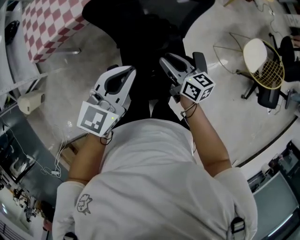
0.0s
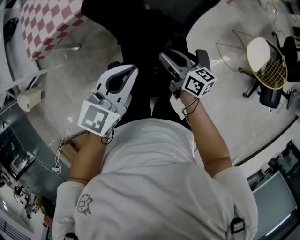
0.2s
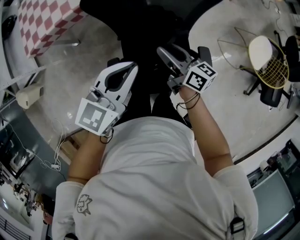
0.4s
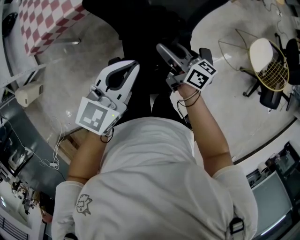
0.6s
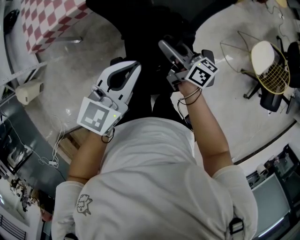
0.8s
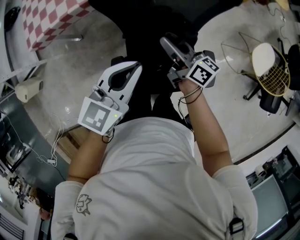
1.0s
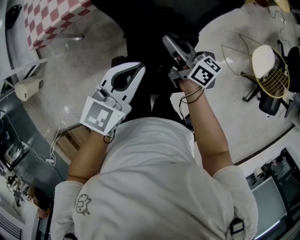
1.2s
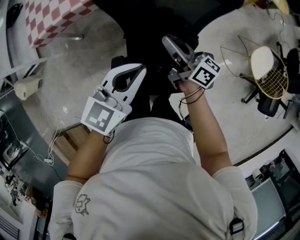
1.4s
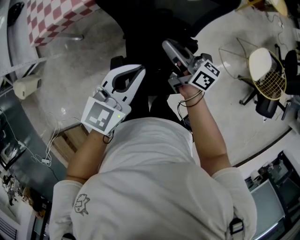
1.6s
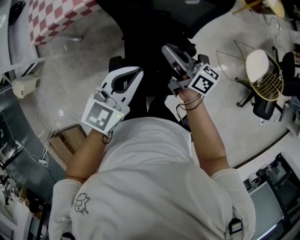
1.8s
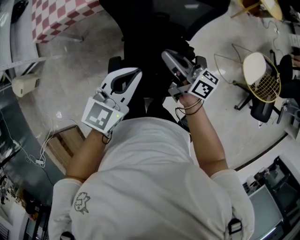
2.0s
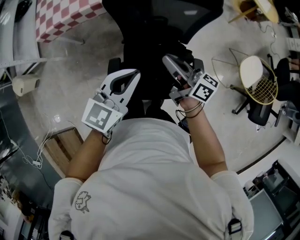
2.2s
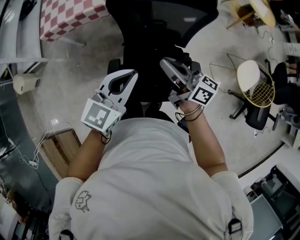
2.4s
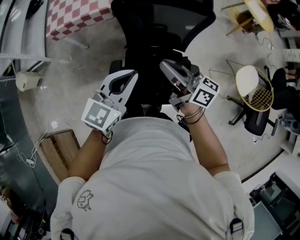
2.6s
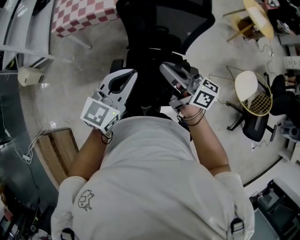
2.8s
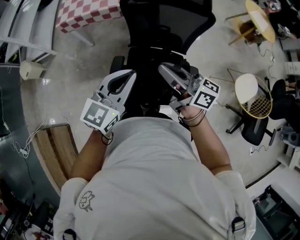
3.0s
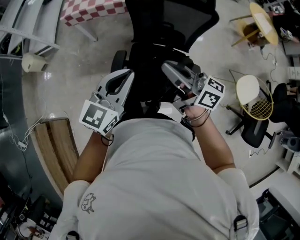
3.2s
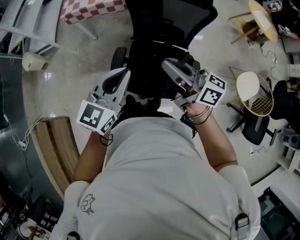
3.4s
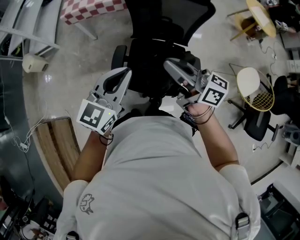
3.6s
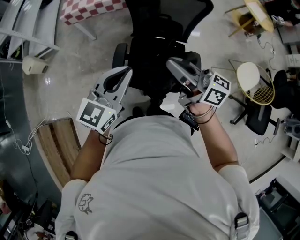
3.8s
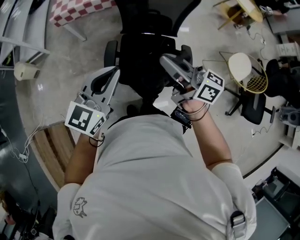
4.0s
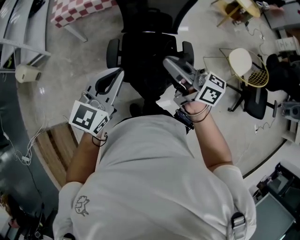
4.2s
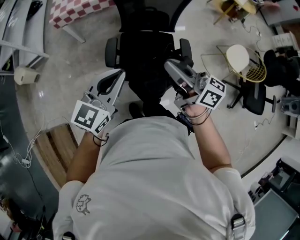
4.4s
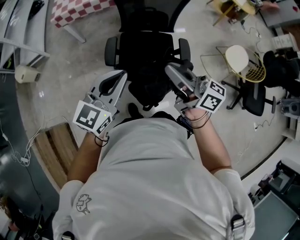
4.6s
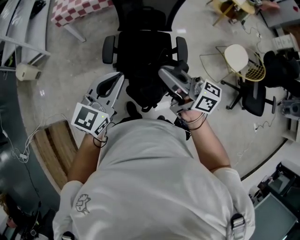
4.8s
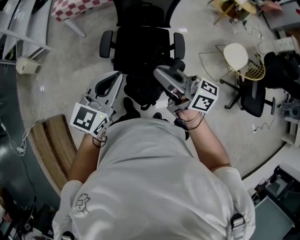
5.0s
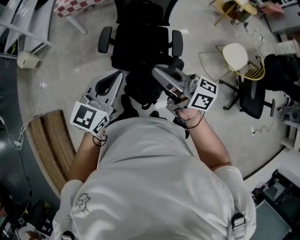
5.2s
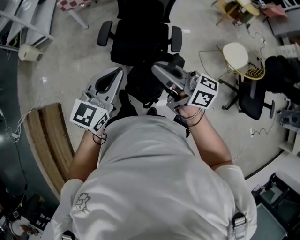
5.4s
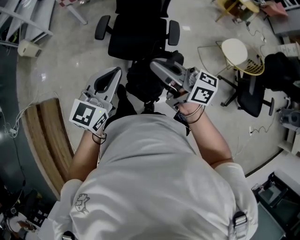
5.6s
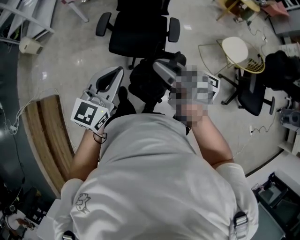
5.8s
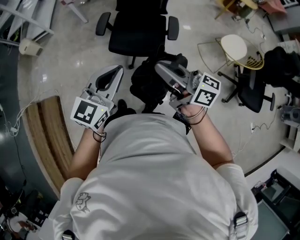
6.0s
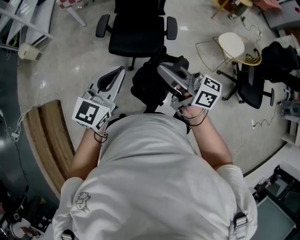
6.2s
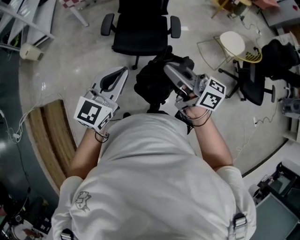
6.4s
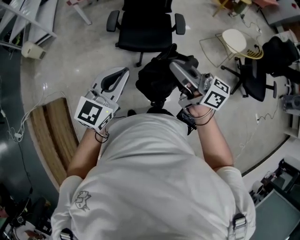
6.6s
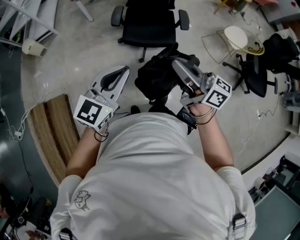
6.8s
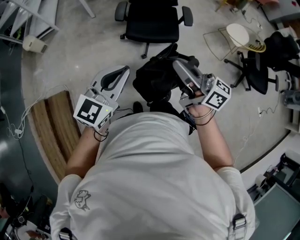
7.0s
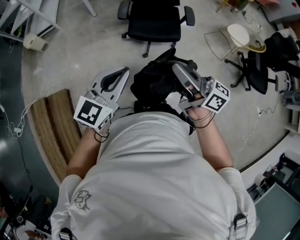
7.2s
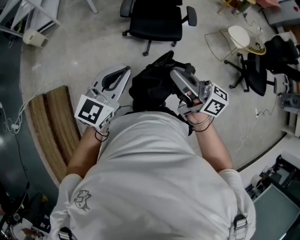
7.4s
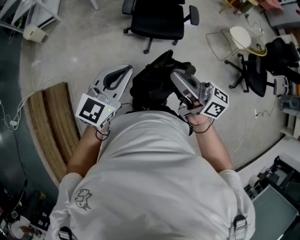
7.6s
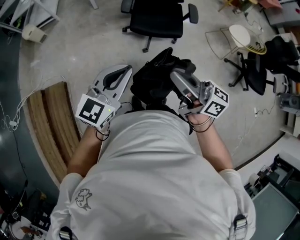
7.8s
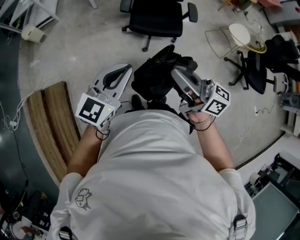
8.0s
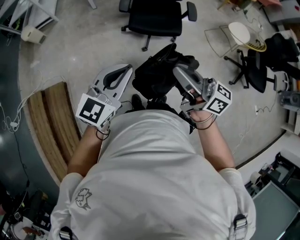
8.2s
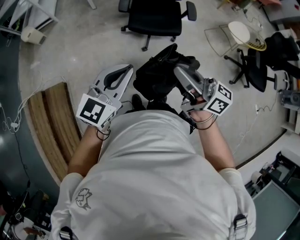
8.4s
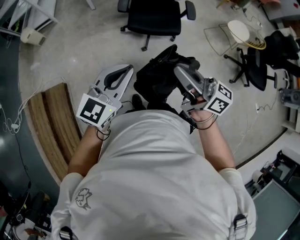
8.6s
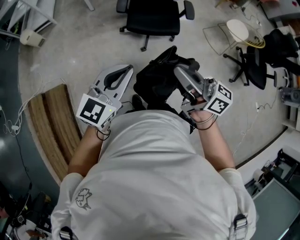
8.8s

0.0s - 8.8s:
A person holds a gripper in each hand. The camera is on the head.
0.0s - 1.4s: The right gripper shifts approximately 10 cm forward and to the left, and swivels about 20 degrees.
1.4s - 3.0s: Both grippers move backward and upward, roughly 20 cm. The left gripper rotates some 20 degrees; the right gripper swivels about 20 degrees.
3.0s - 4.4s: The left gripper is displaced backward and to the left by some 20 cm. Meanwhile the right gripper heads backward, covering some 20 cm.
4.4s - 5.8s: The left gripper heads backward and to the right, covering about 25 cm, while the right gripper travels backward by some 25 cm.
5.8s - 7.4s: Both grippers travel together to the left and backward, roughly 30 cm.
7.4s - 8.8s: The grippers stay close to where they were, moving slightly.

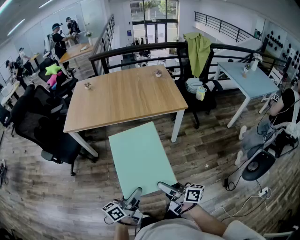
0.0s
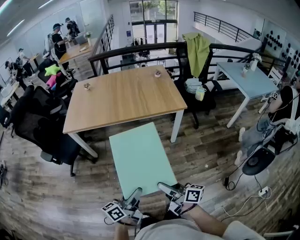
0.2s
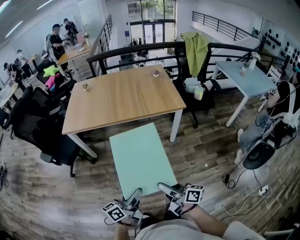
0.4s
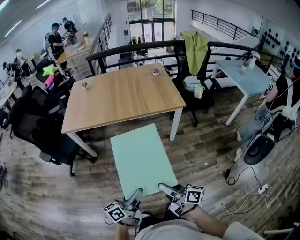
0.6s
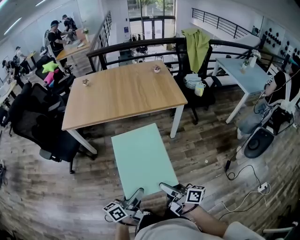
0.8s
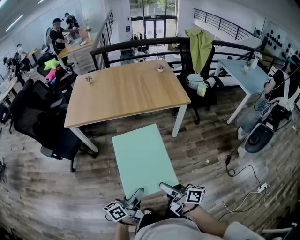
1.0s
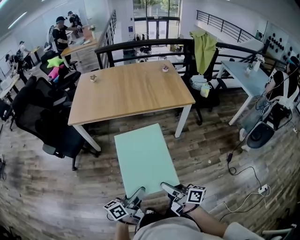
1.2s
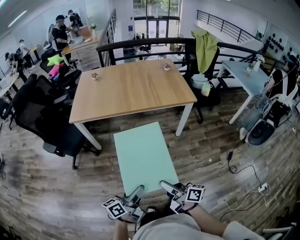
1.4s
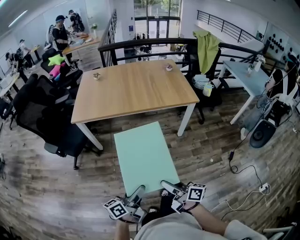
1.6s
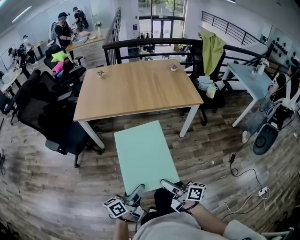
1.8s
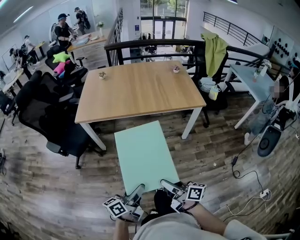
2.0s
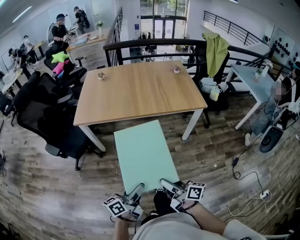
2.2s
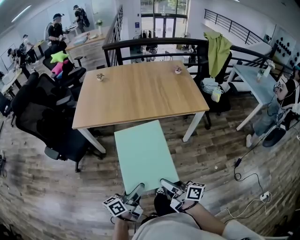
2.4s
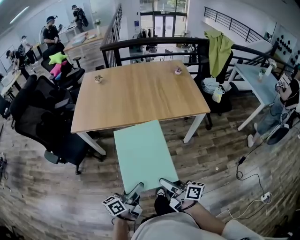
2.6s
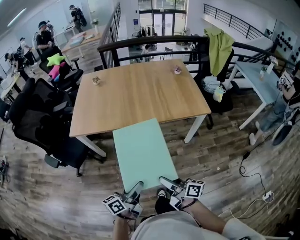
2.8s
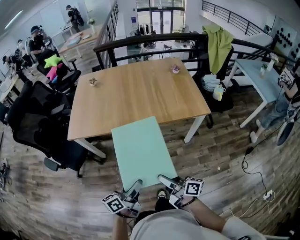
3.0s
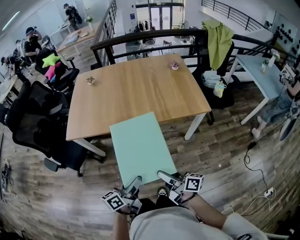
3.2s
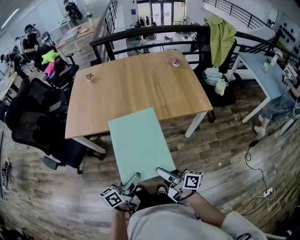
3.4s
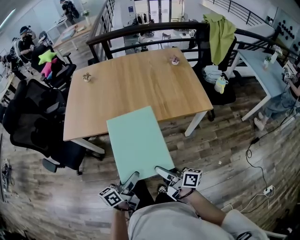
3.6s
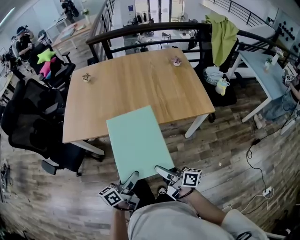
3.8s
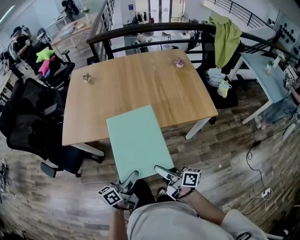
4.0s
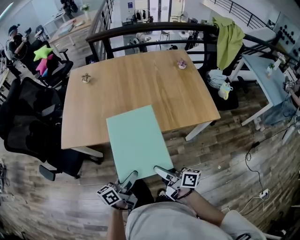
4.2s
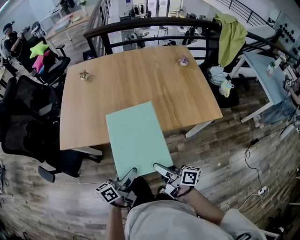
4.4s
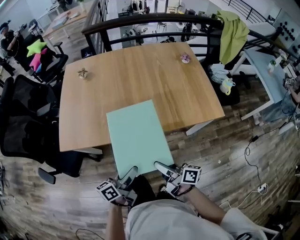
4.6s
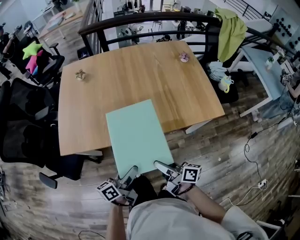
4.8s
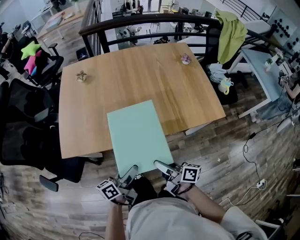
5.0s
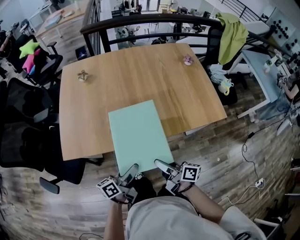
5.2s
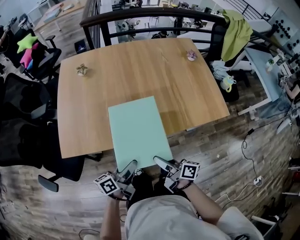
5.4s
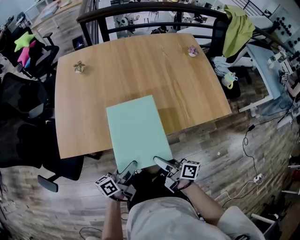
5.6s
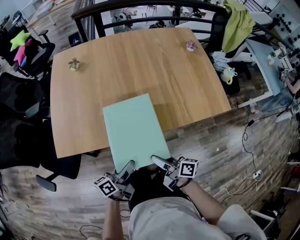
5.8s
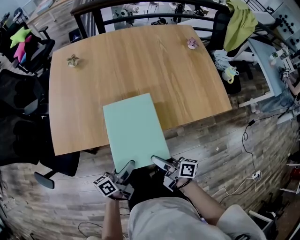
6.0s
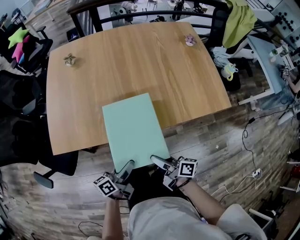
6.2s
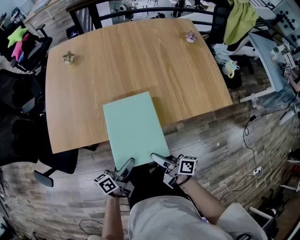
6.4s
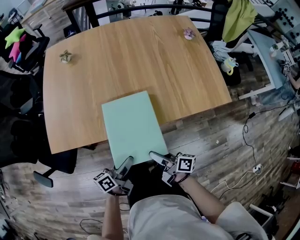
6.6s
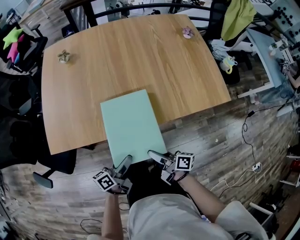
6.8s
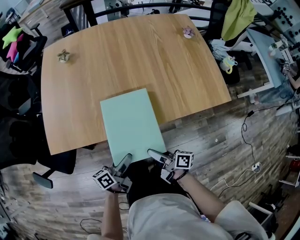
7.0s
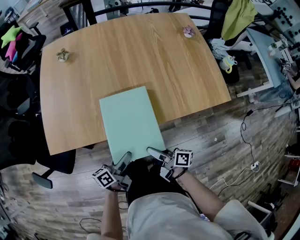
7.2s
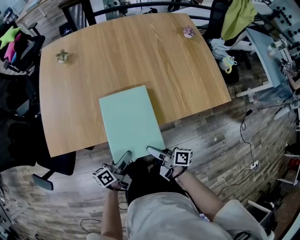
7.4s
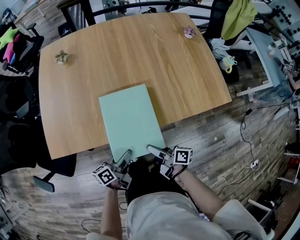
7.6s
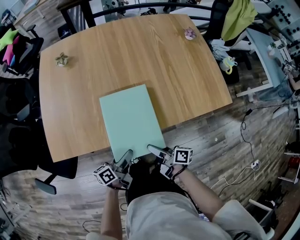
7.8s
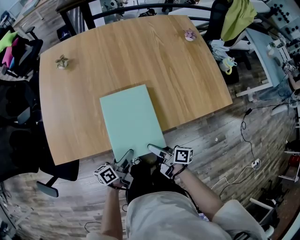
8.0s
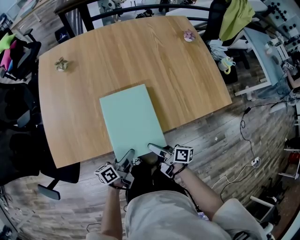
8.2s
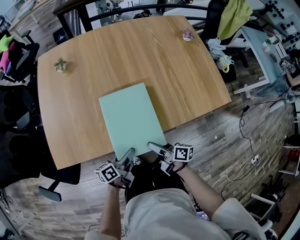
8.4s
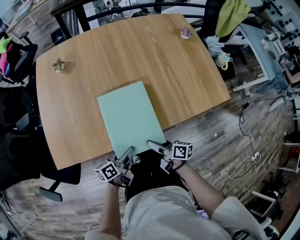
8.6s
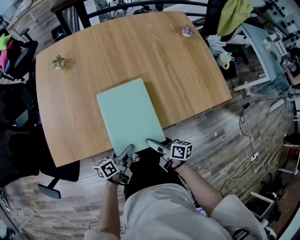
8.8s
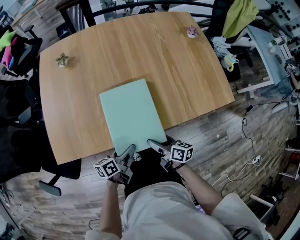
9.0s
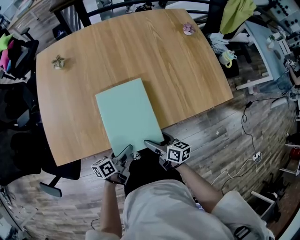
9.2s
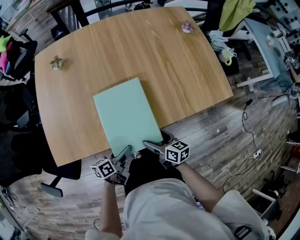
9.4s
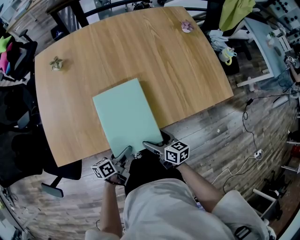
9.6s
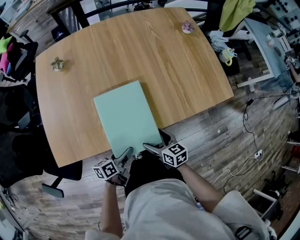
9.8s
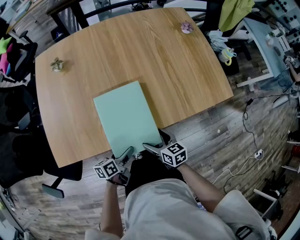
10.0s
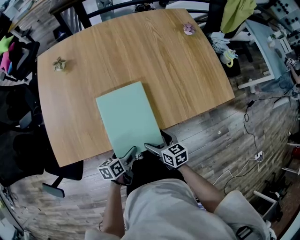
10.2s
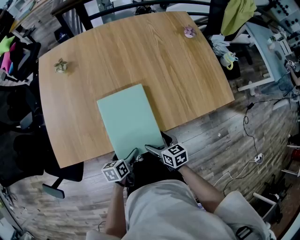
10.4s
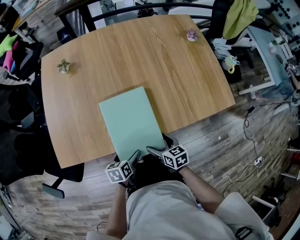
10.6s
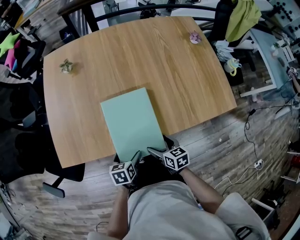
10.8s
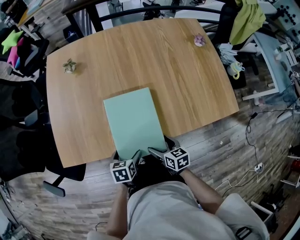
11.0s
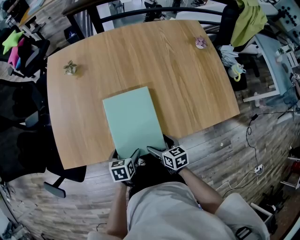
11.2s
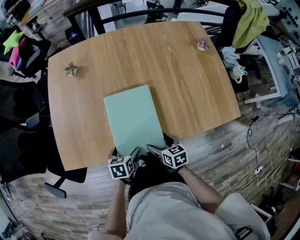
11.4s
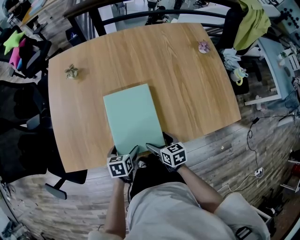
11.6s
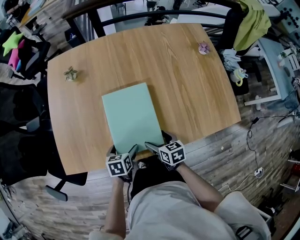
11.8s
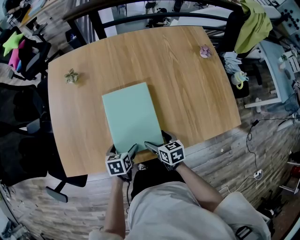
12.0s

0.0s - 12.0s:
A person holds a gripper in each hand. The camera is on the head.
0.0s - 1.6s: Both grippers move to the left, about 10 cm.
1.6s - 3.0s: The grippers both shift forward by some 20 cm.
3.0s - 4.4s: Both grippers move forward, about 20 cm.
4.4s - 6.0s: Both grippers travel together forward, downward and to the left, some 10 cm.
6.0s - 7.6s: Both grippers travel together downward, some 5 cm.
7.6s - 9.0s: The right gripper moves forward, about 5 cm.
9.0s - 10.4s: The left gripper swivels some 30 degrees. The right gripper rotates about 30 degrees.
10.4s - 12.0s: The grippers both shift forward by about 15 cm.

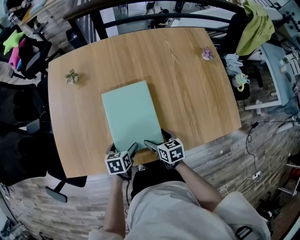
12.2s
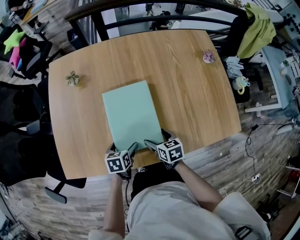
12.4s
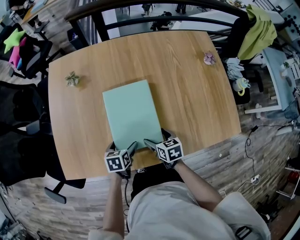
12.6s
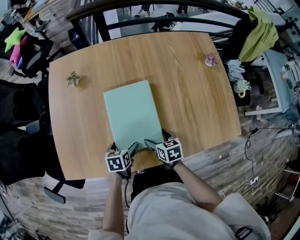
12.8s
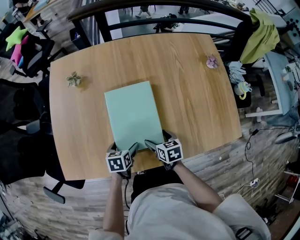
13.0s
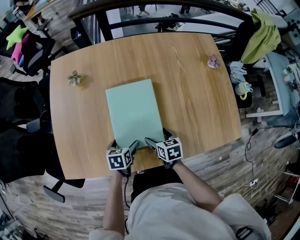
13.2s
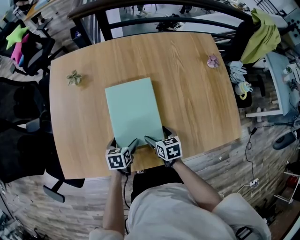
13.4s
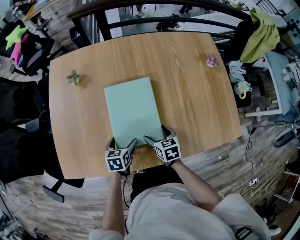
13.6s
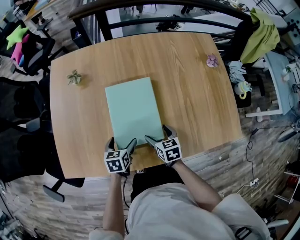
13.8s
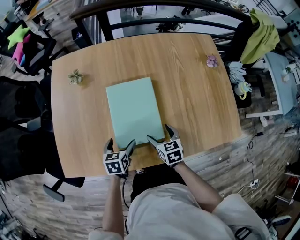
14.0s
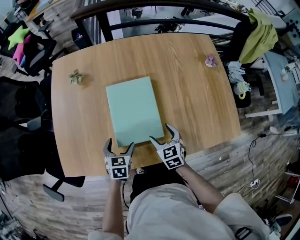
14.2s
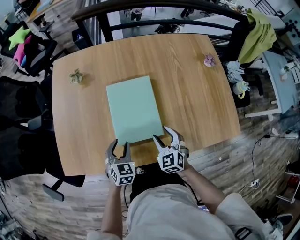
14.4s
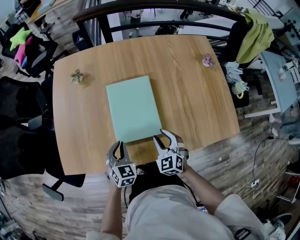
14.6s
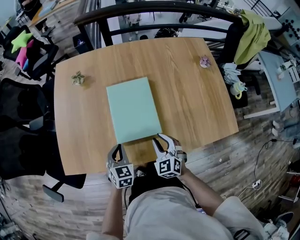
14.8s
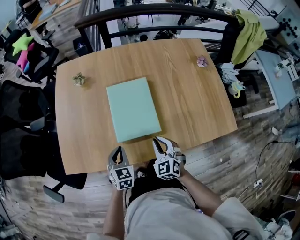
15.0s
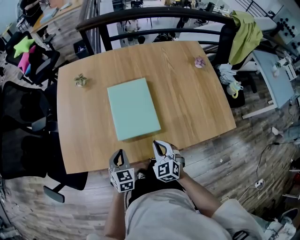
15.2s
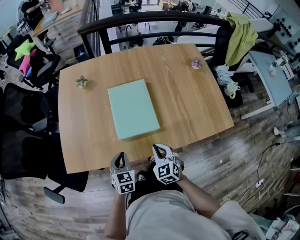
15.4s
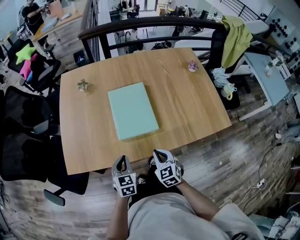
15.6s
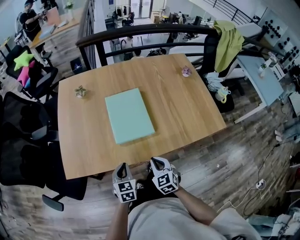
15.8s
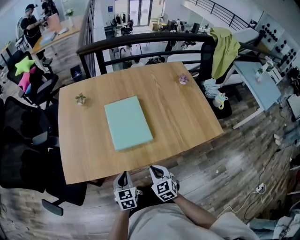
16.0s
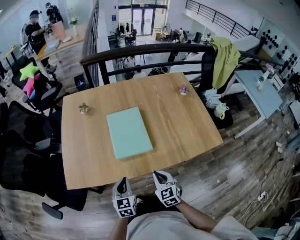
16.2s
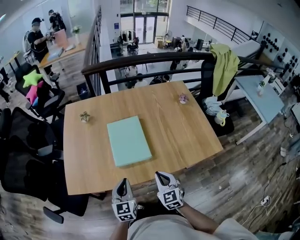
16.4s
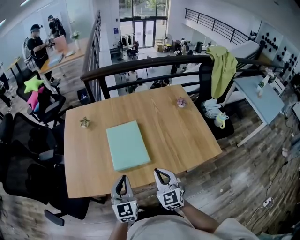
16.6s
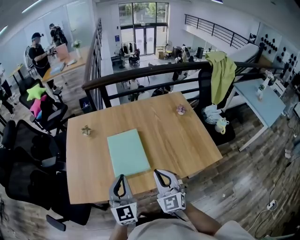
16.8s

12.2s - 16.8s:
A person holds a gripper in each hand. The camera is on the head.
12.2s - 13.8s: Both grippers travel together forward, roughly 5 cm.
13.8s - 15.2s: Both grippers travel together backward and upward, approximately 15 cm. The right gripper turns by some 40 degrees, and closes its fingers; the left gripper rotates some 30 degrees, and closes its fingers.
15.2s - 16.8s: The two grippers go approximately 25 cm upward. The right gripper rotates approximately 30 degrees; the left gripper tilts its fingers some 40 degrees upward.
